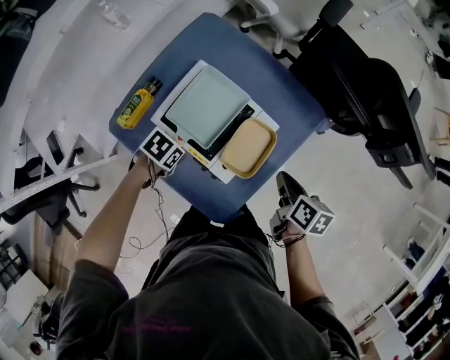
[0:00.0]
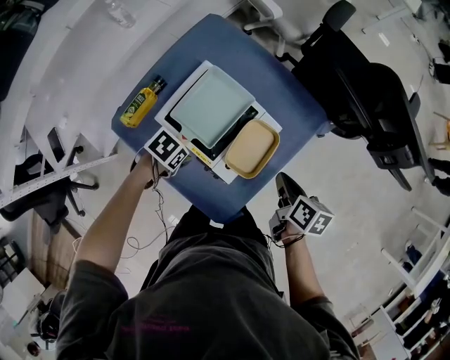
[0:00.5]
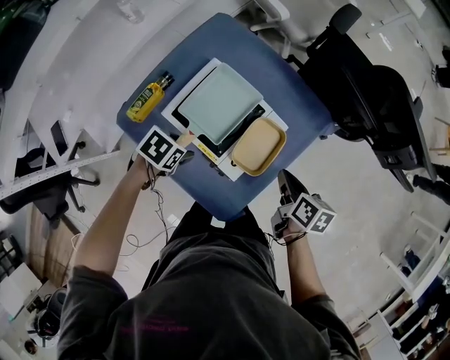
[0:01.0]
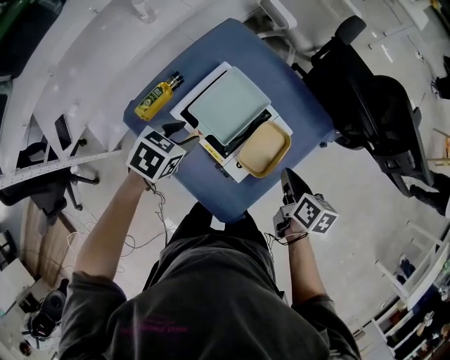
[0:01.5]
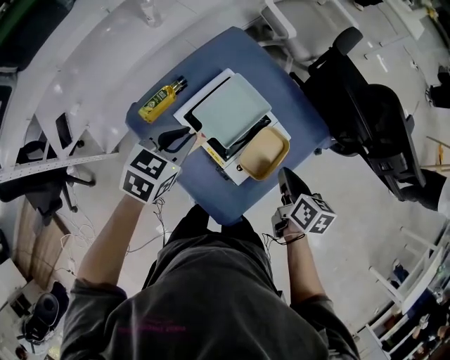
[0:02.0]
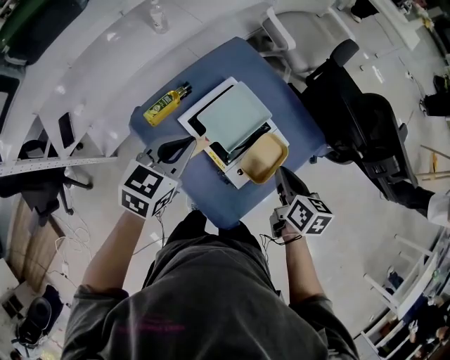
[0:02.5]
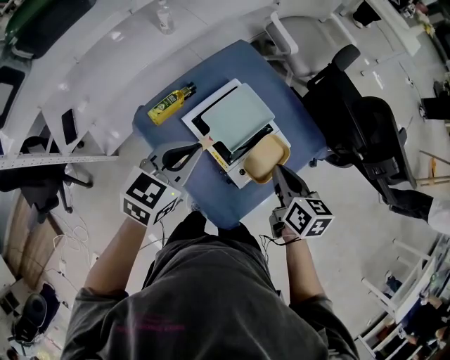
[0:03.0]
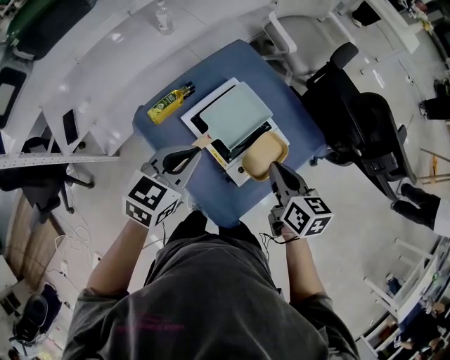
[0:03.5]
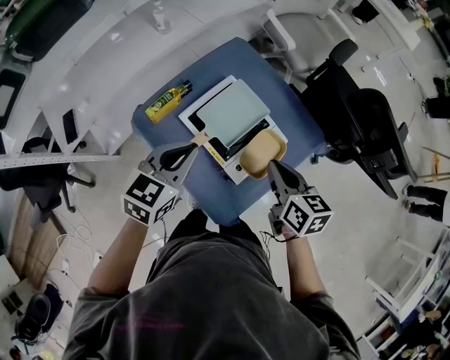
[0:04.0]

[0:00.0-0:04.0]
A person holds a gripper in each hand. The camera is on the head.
0:00.0 to 0:02.0: The right gripper moves some 10 cm. Meanwhile the left gripper is displaced upward by approximately 20 cm, turns by roughly 50 degrees, and opens, then closes again.
0:02.0 to 0:04.0: The right gripper shifts some 10 cm upward and to the left, and turns by roughly 20 degrees. The left gripper shifts approximately 5 cm upward.

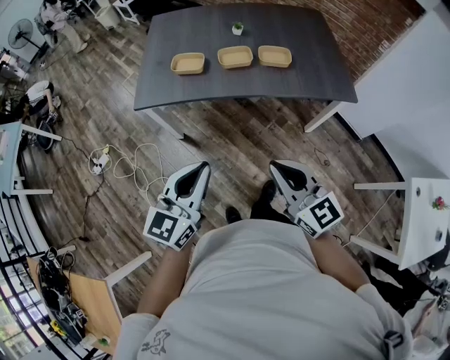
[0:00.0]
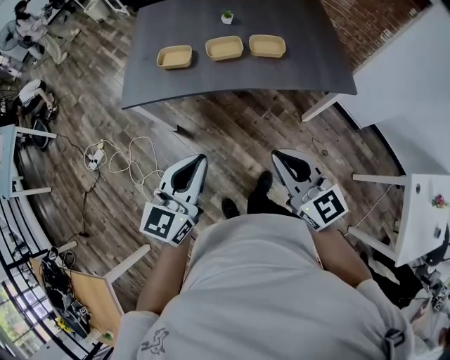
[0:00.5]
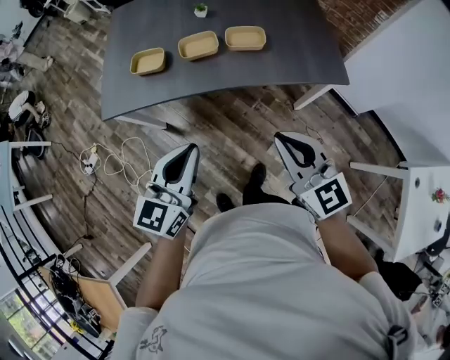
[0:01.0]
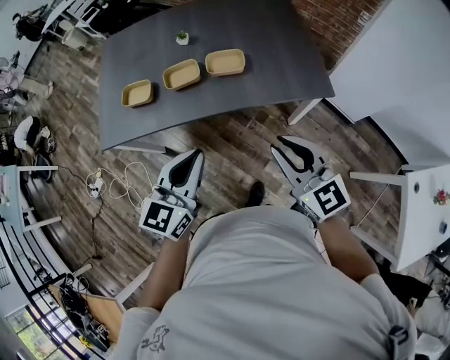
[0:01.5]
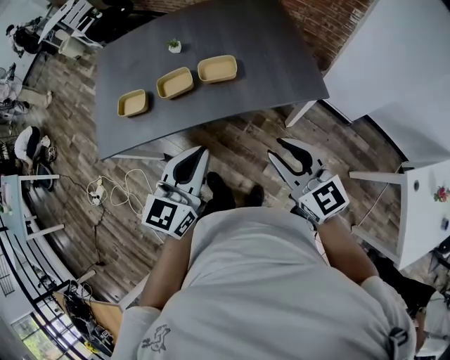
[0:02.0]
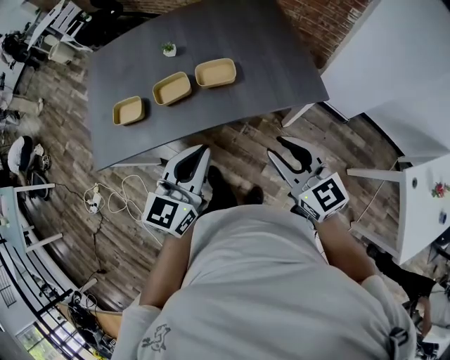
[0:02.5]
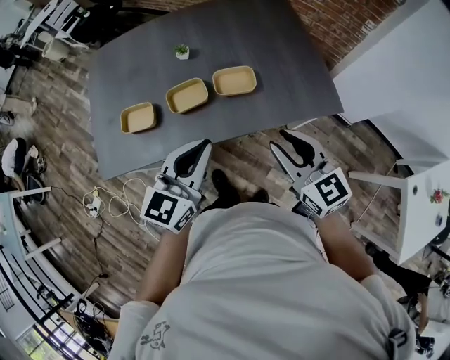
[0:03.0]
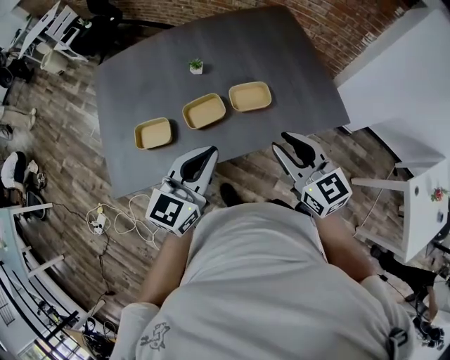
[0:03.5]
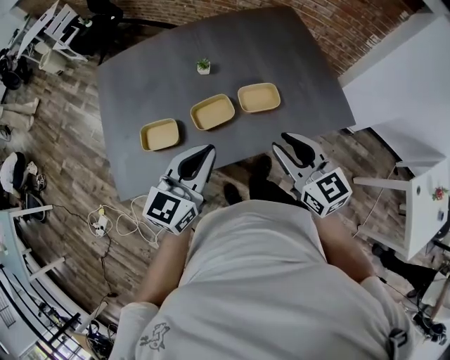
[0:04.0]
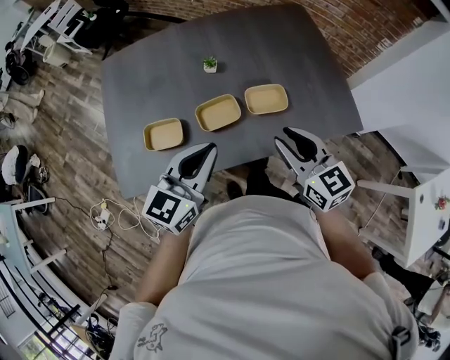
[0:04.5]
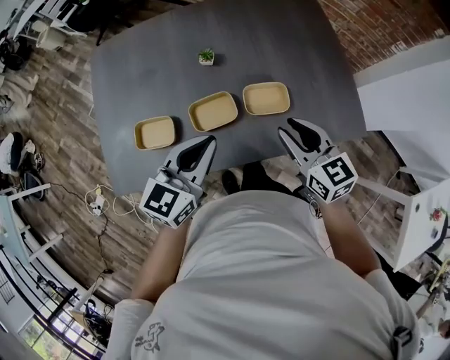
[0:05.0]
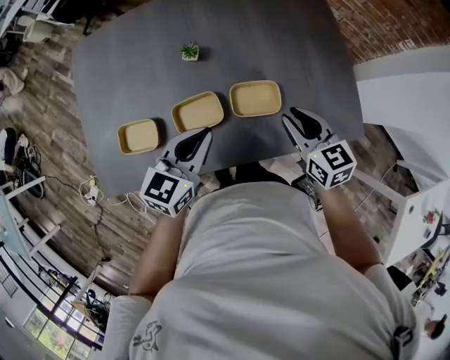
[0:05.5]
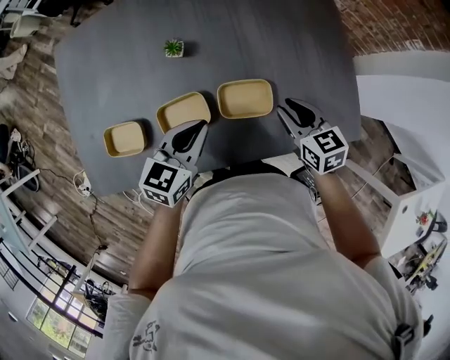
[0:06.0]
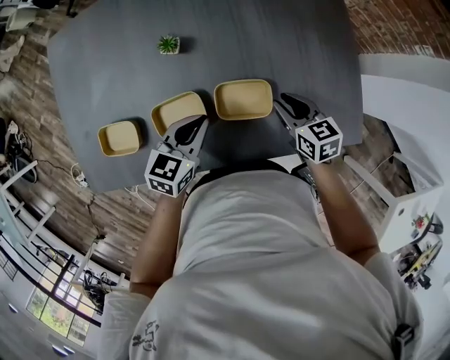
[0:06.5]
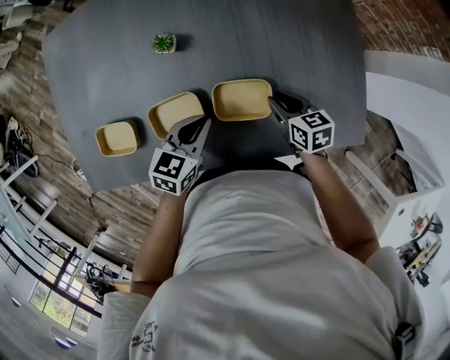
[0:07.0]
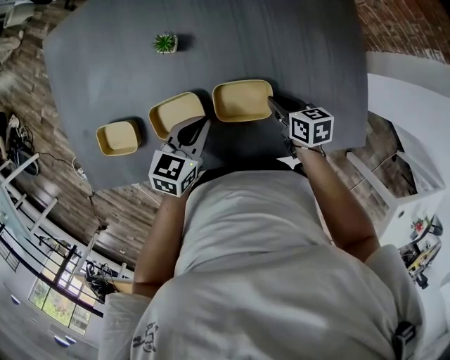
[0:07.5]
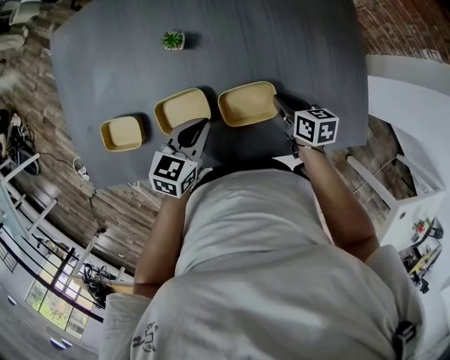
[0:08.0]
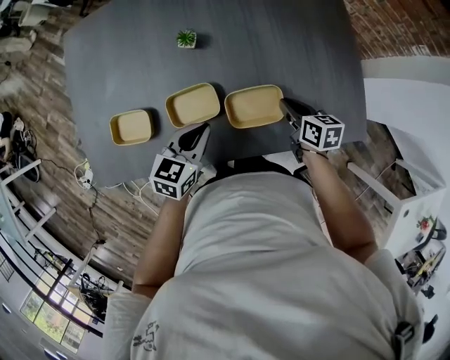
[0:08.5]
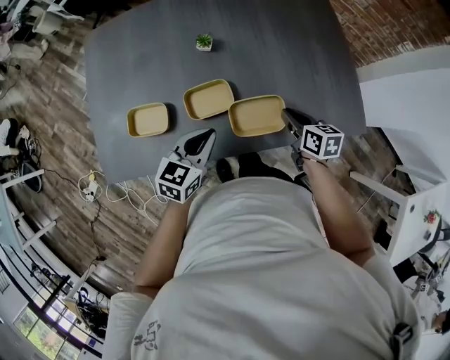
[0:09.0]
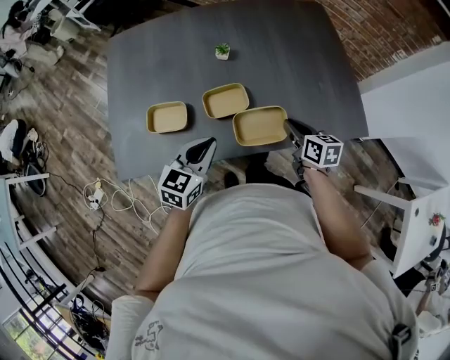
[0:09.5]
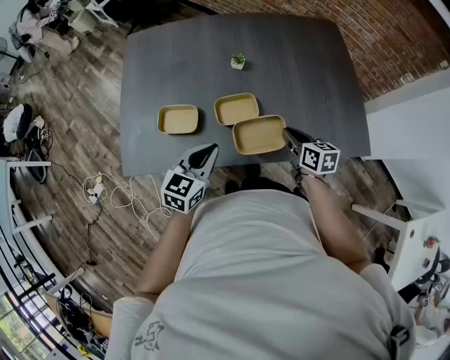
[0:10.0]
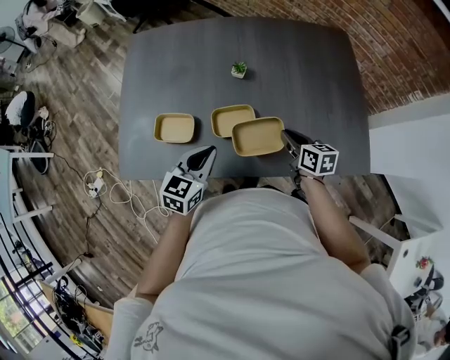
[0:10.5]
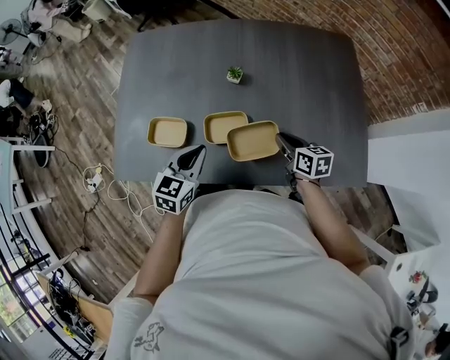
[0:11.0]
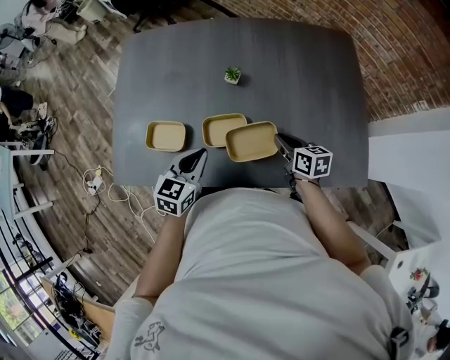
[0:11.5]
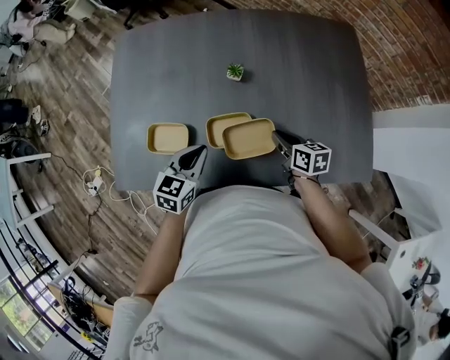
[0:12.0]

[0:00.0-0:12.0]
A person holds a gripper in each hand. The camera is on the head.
0:00.0 to 0:02.0: Both grippers travel together to the right and forward, some 30 cm. The right gripper opens up.
0:02.0 to 0:04.0: The grippers both shift to the left and forward by approximately 25 cm.
0:04.0 to 0:06.0: The grippers both shift forward, downward and to the right by roughly 30 cm. The right gripper rotates some 30 degrees; the left gripper rotates some 20 degrees.
0:06.0 to 0:08.0: The right gripper travels downward by roughly 10 cm, and rotates approximately 30 degrees, while the left gripper moves downward, some 5 cm.
0:08.0 to 0:10.0: The left gripper goes roughly 25 cm backward, to the left and upward. Meanwhile the right gripper moves backward, upward and to the left, approximately 20 cm.
0:10.0 to 0:12.0: The left gripper travels forward by roughly 10 cm, while the right gripper travels forward and downward by approximately 10 cm.

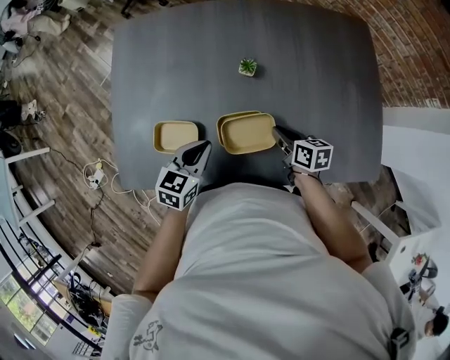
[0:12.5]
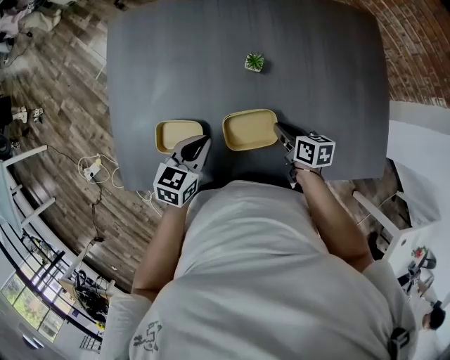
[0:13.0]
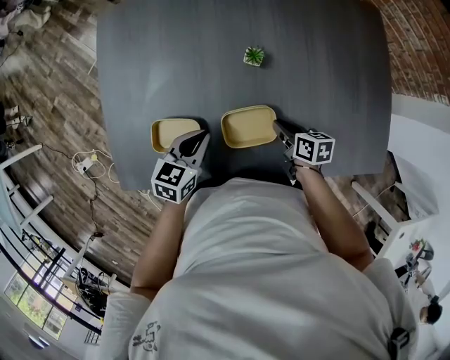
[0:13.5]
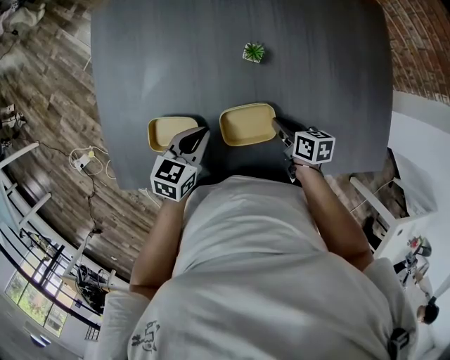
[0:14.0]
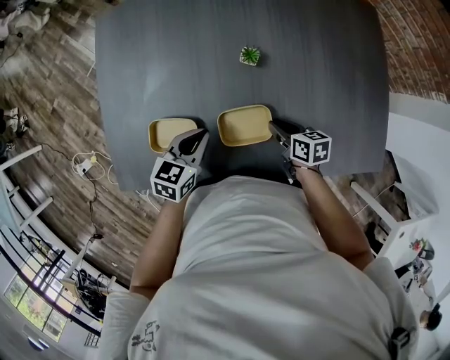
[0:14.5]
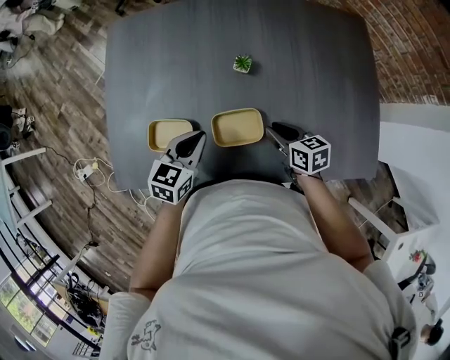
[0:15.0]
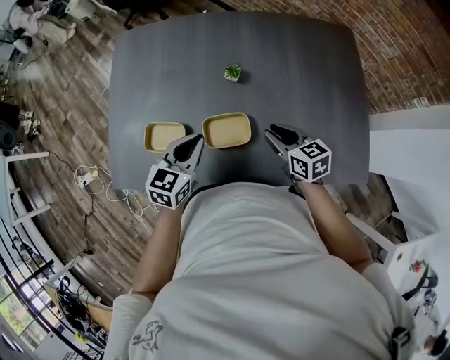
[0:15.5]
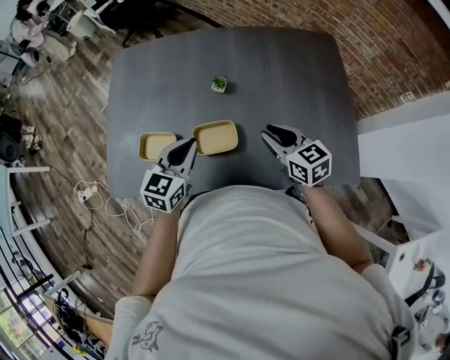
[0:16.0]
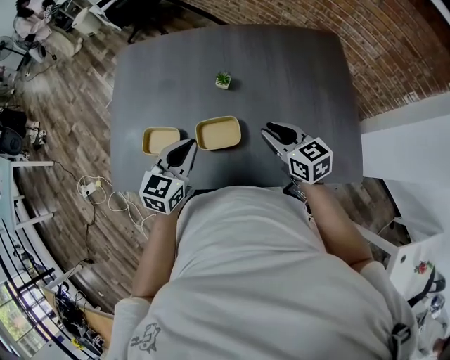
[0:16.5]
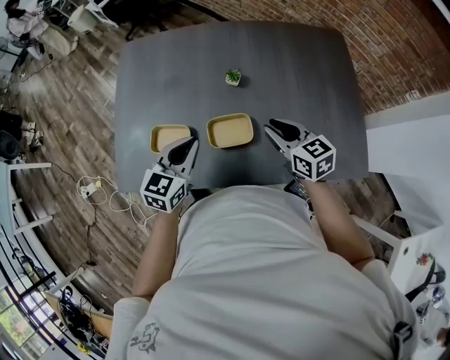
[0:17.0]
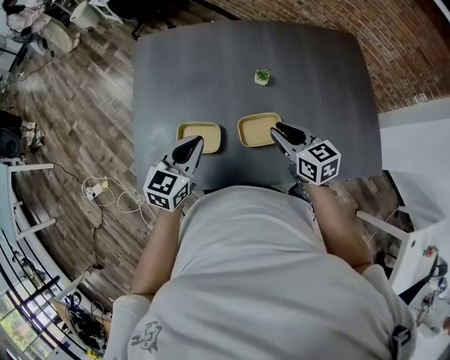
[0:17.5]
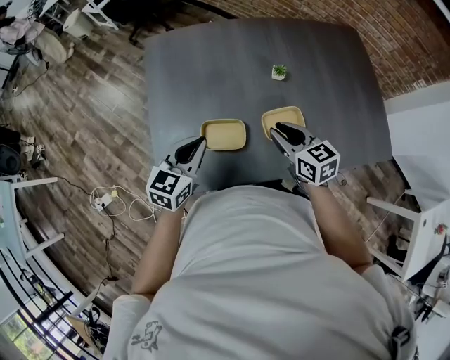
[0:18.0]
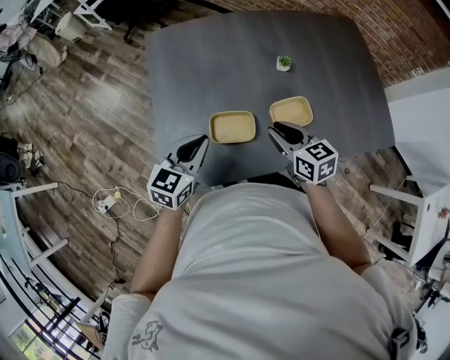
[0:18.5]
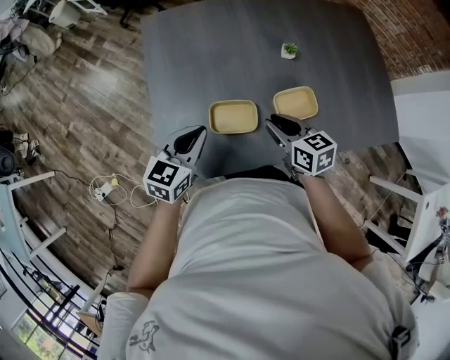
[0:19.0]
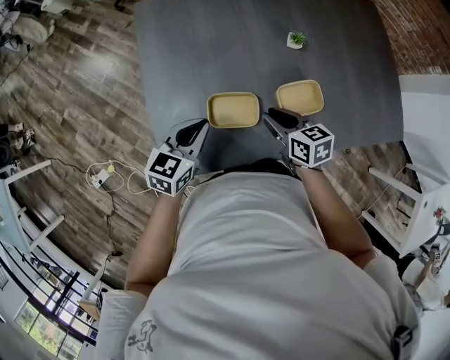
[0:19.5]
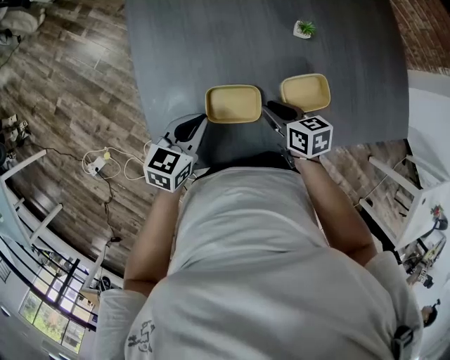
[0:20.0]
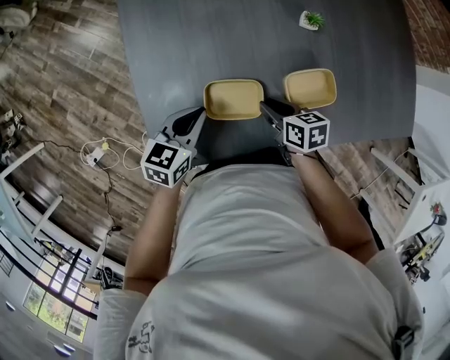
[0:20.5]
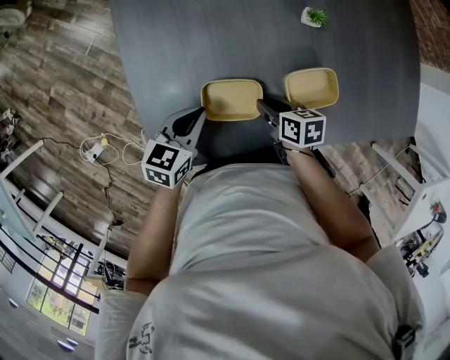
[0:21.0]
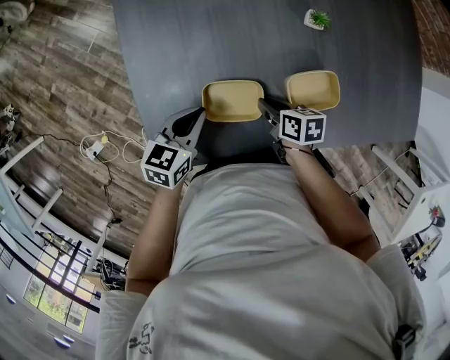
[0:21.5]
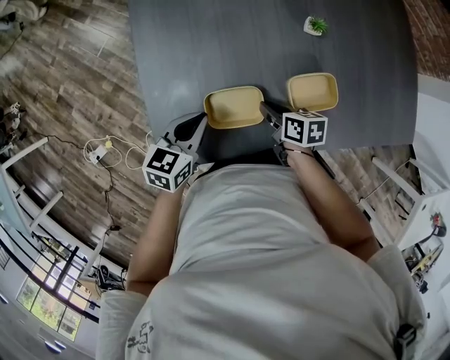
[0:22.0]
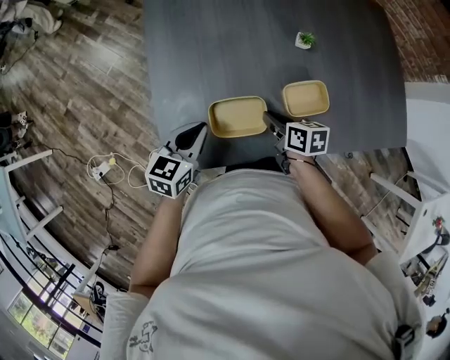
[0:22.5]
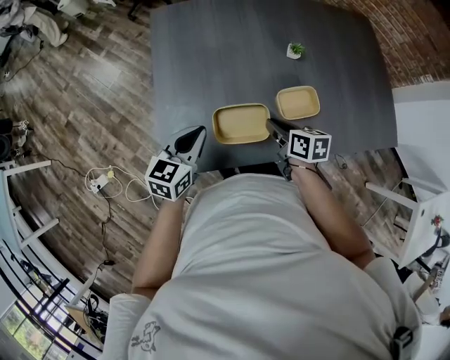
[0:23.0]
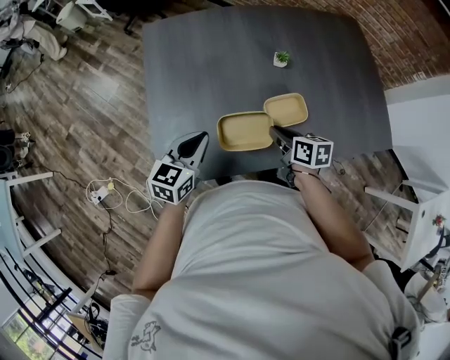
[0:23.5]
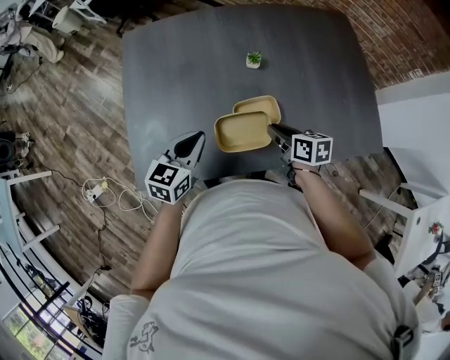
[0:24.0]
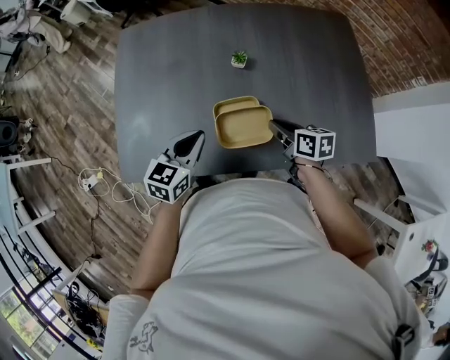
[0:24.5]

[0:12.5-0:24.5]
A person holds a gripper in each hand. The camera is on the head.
0:12.5 to 0:14.5: The grippers move only a little.
0:14.5 to 0:16.5: The right gripper moves upward, about 20 cm, and rotates about 40 degrees. The left gripper heads upward, backward and to the right, covering some 15 cm, and swivels roughly 20 degrees.
0:16.5 to 0:18.5: The grippers both shift to the left by about 25 cm.
0:18.5 to 0:20.5: Both grippers travel together downward, approximately 15 cm. The right gripper rotates about 30 degrees.
0:20.5 to 0:22.5: The right gripper changes place by approximately 5 cm, while the left gripper shifts roughly 5 cm upward.
0:22.5 to 0:24.5: The two grippers go some 25 cm to the right.
